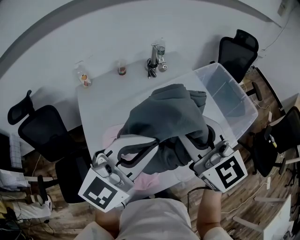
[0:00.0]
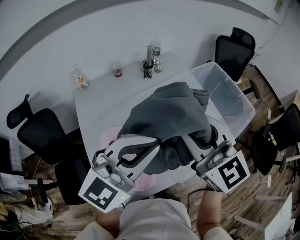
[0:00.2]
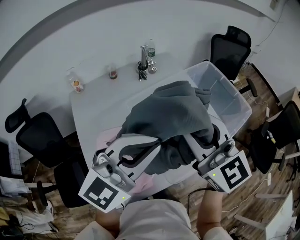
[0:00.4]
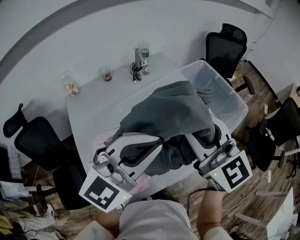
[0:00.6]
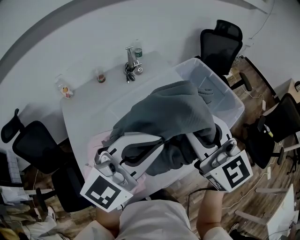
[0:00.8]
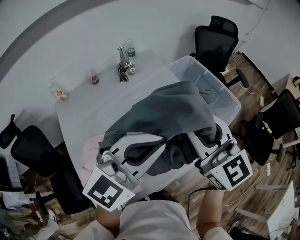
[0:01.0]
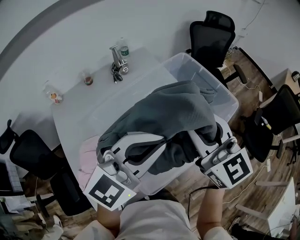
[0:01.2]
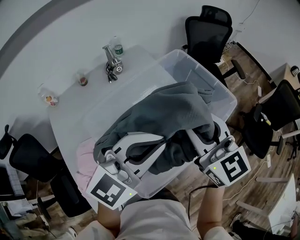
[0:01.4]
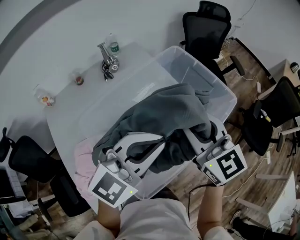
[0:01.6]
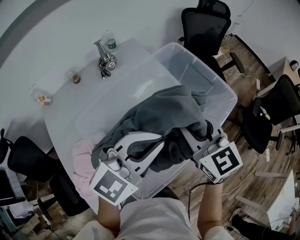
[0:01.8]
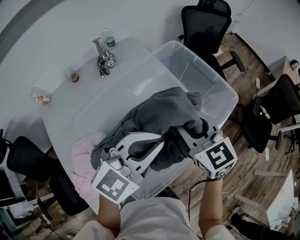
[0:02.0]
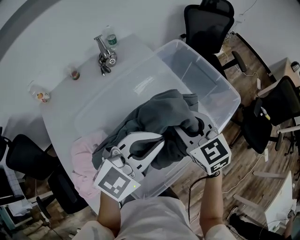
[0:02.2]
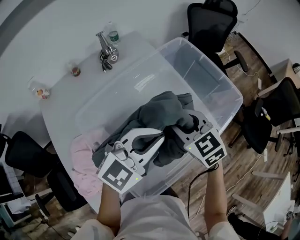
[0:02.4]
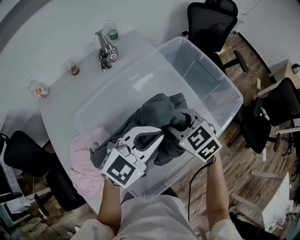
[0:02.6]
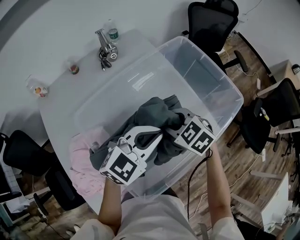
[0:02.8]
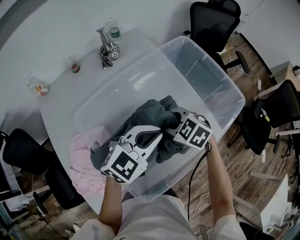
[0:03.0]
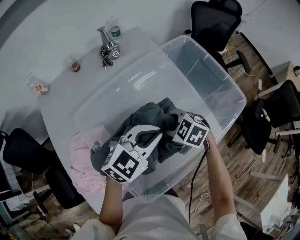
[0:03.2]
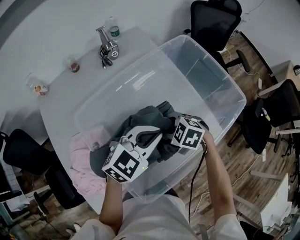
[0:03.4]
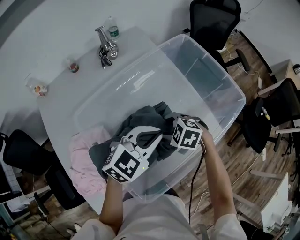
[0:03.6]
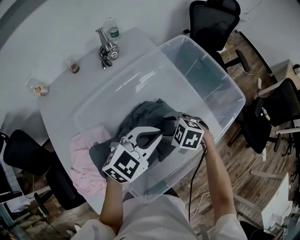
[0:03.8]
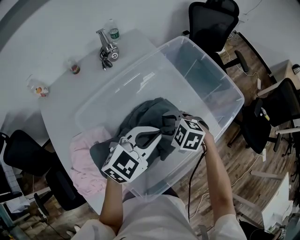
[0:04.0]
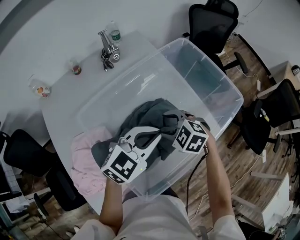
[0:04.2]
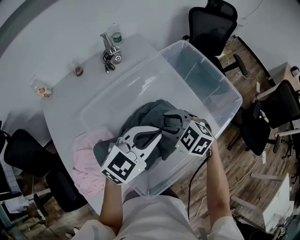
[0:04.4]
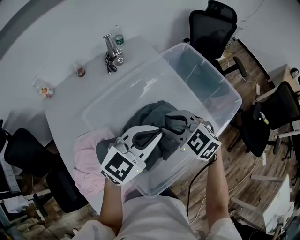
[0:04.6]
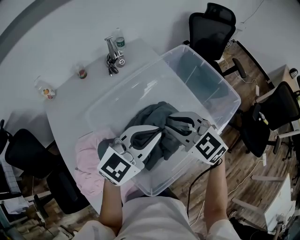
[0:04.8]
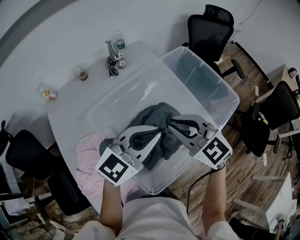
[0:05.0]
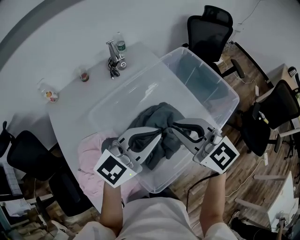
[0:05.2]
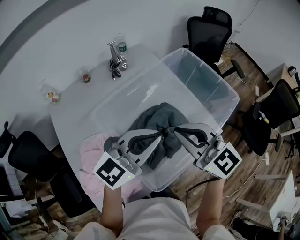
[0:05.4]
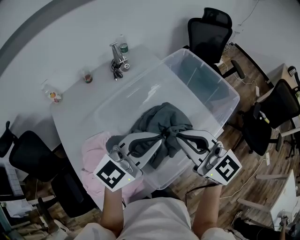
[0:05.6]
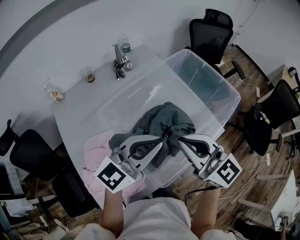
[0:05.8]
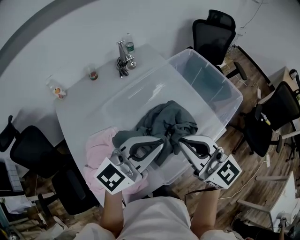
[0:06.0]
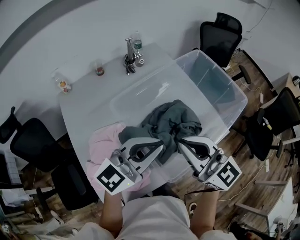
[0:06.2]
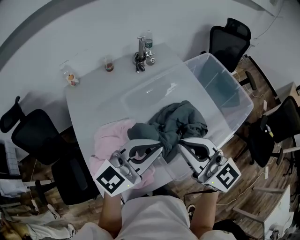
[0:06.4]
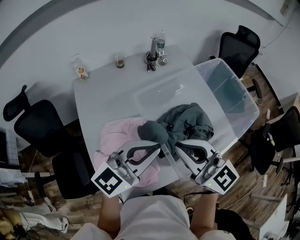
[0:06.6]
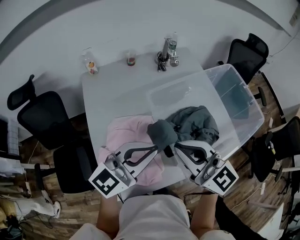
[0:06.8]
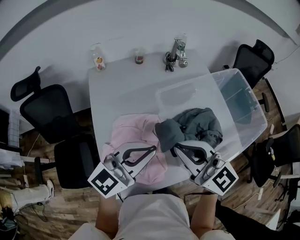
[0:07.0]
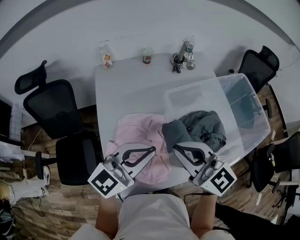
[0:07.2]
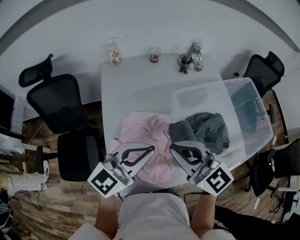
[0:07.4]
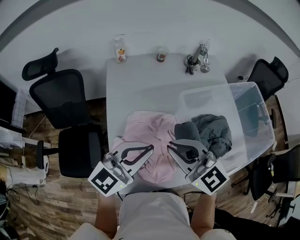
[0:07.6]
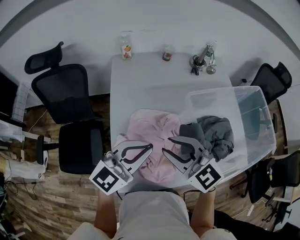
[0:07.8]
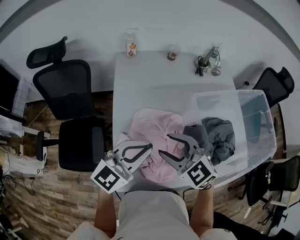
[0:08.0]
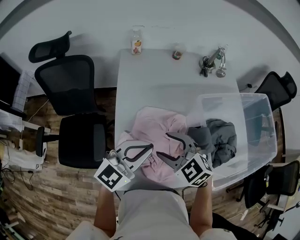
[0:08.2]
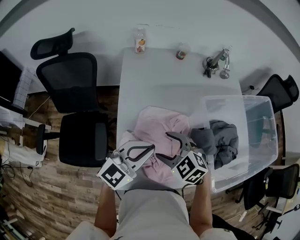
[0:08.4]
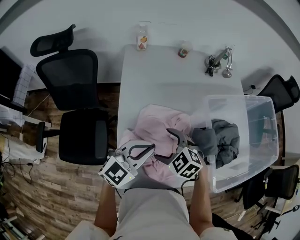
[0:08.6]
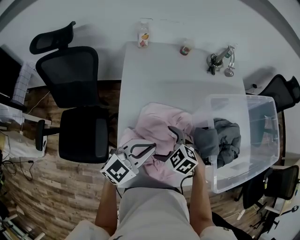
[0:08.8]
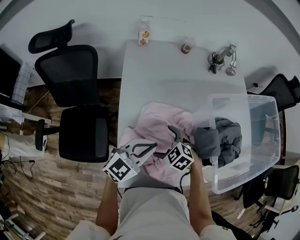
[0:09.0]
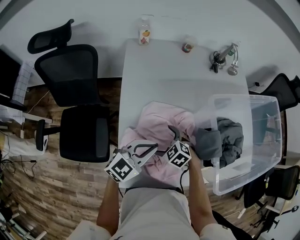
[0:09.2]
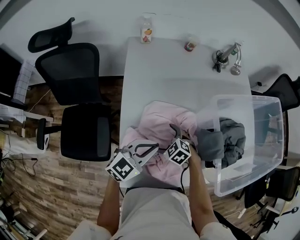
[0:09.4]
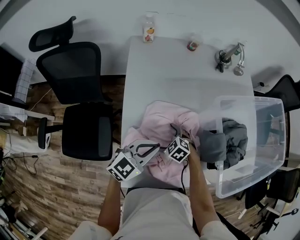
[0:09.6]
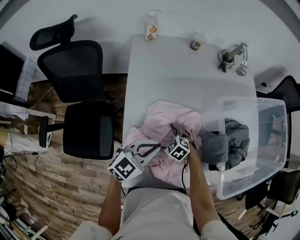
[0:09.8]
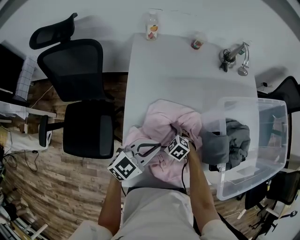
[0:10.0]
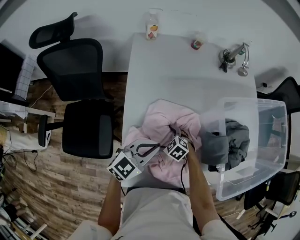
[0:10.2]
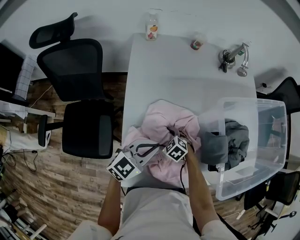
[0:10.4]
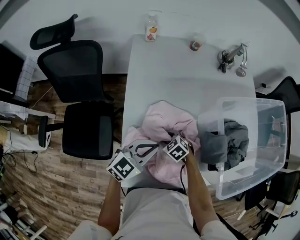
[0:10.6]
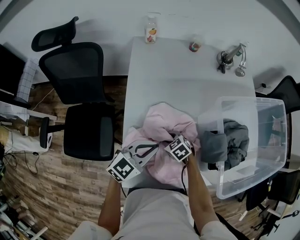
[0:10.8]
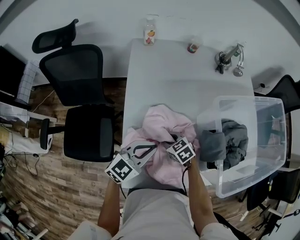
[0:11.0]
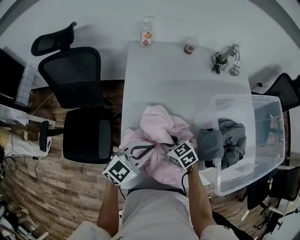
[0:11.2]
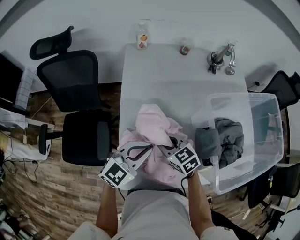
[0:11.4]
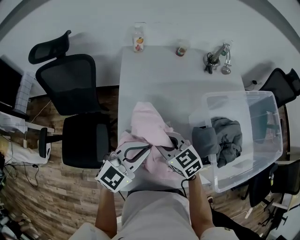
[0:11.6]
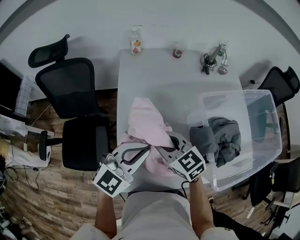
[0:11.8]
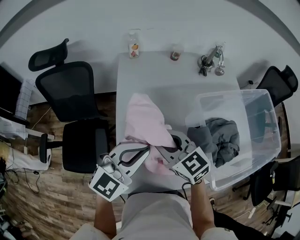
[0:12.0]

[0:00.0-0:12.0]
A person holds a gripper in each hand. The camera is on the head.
0:00.0 to 0:01.6: The grippers both shift to the right and forward by approximately 25 cm.
0:01.6 to 0:03.0: The right gripper is displaced downward by some 20 cm, and tips its fingers downward by some 40 degrees. Meanwhile the left gripper is displaced downward by roughly 15 cm.
0:04.4 to 0:06.0: The right gripper goes about 20 cm upward and backward, angles its fingers upward, by roughly 50 degrees, and closes its fingers; the left gripper shifts about 15 cm backward, upward and to the left.
0:06.0 to 0:07.6: The left gripper ends up about 30 cm from where it was, and rotates some 30 degrees. Meanwhile the right gripper moves some 30 cm, and rotates roughly 30 degrees.
0:07.6 to 0:09.0: The left gripper shifts about 15 cm downward. The right gripper moves downward, approximately 25 cm, tips its fingers downward by some 40 degrees, and opens up.
0:09.0 to 0:10.4: The left gripper is displaced downward by some 5 cm; the right gripper is displaced downward by approximately 10 cm.
0:10.4 to 0:12.0: The right gripper shifts about 30 cm upward, angles its fingers upward, by approximately 40 degrees, and closes up; the left gripper goes roughly 15 cm upward, and turns by some 20 degrees.

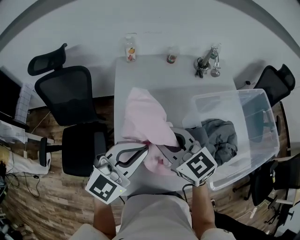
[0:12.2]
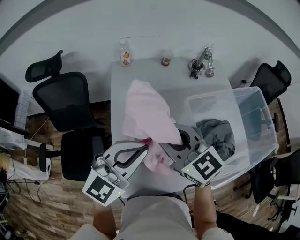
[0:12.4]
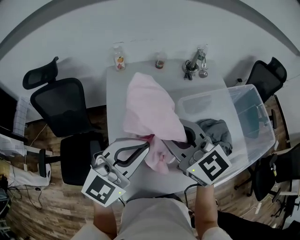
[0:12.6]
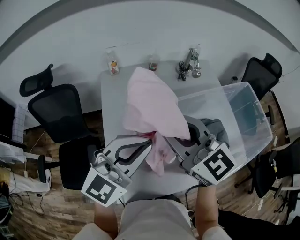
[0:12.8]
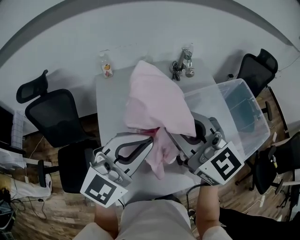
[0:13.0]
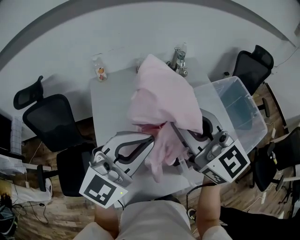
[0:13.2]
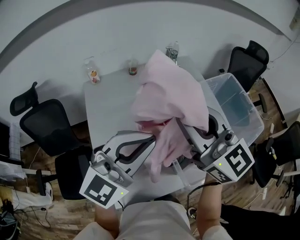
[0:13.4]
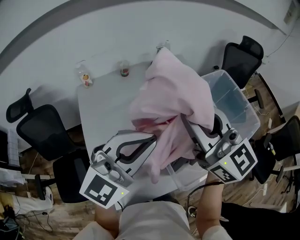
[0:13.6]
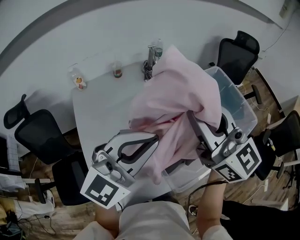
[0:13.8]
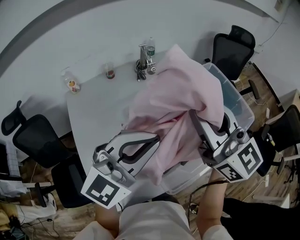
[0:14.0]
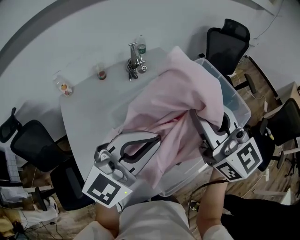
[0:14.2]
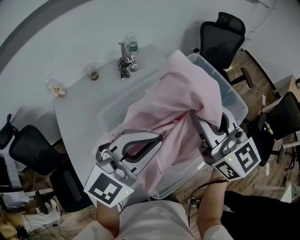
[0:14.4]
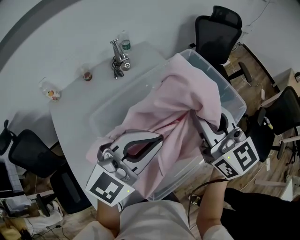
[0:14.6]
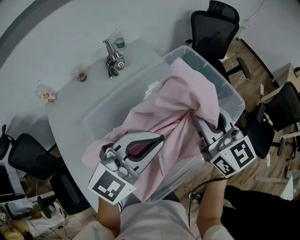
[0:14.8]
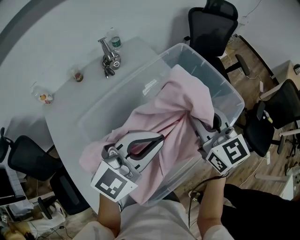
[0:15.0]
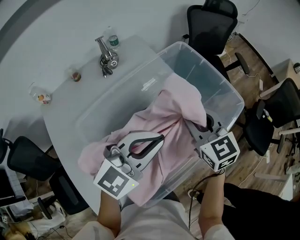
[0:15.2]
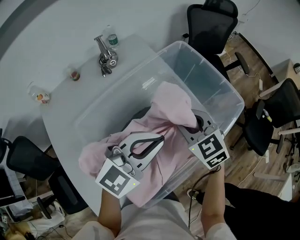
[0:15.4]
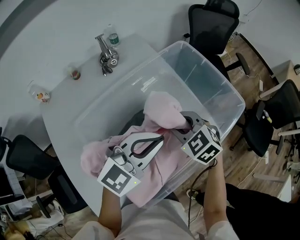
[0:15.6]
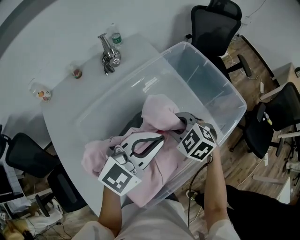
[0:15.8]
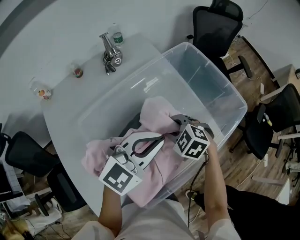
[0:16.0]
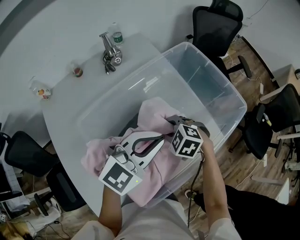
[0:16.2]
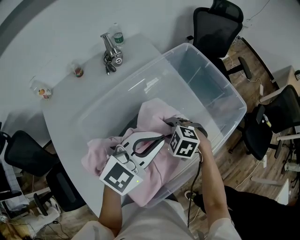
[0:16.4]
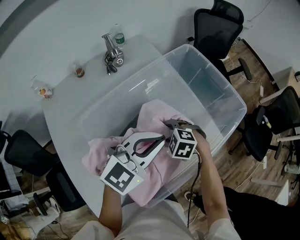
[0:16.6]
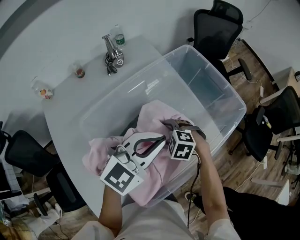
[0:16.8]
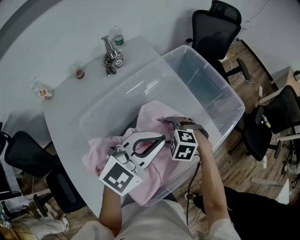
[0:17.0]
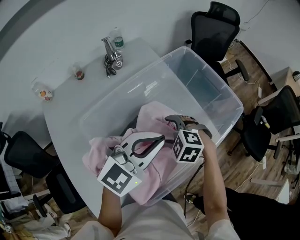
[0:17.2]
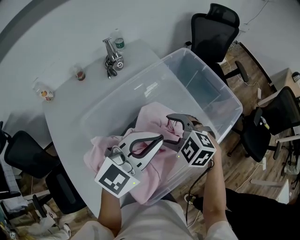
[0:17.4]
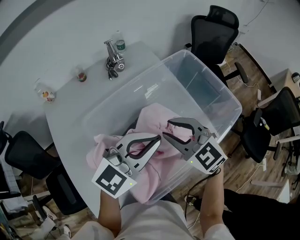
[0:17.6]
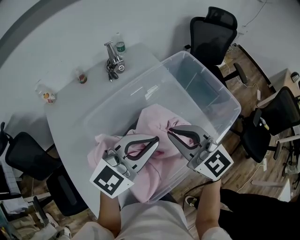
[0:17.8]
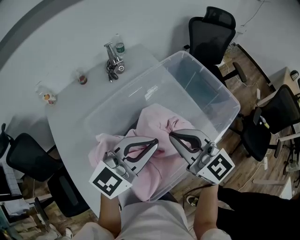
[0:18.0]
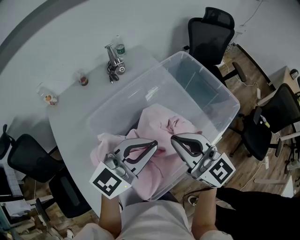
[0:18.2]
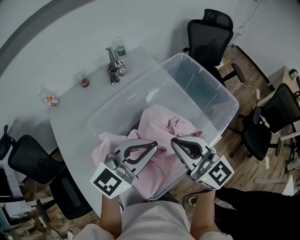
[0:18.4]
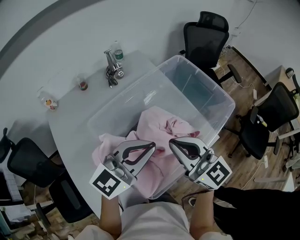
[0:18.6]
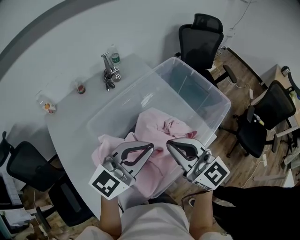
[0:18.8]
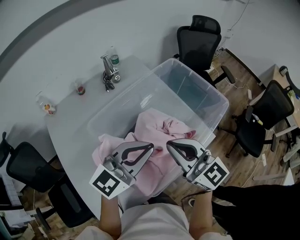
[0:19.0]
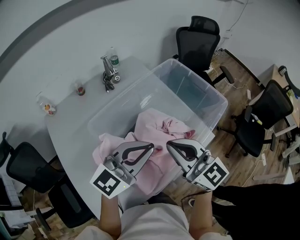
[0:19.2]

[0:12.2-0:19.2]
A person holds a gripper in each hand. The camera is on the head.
0:12.2 to 0:13.6: The grippers both shift to the right and upward by roughly 25 cm. The left gripper rotates roughly 20 degrees; the right gripper turns by roughly 30 degrees.
0:13.6 to 0:15.0: The left gripper is displaced to the right, forward and downward by roughly 25 cm, and swivels approximately 20 degrees; the right gripper moves to the right, downward and forward, some 30 cm, and turns by about 30 degrees.
0:15.0 to 0:16.4: The left gripper shifts about 5 cm downward; the right gripper shifts some 20 cm downward, and tilts its fingers roughly 50 degrees downward.
0:16.4 to 0:17.8: The left gripper changes place by about 5 cm. Meanwhile the right gripper moves upward, about 20 cm, tilts its fingers some 50 degrees upward, and opens, then closes again.
0:17.8 to 0:19.2: The grippers both shift backward by about 5 cm.

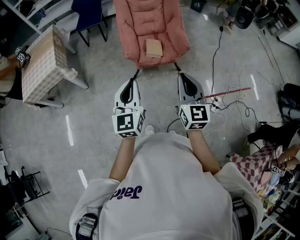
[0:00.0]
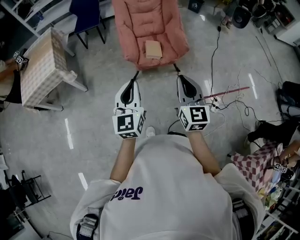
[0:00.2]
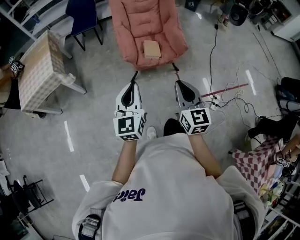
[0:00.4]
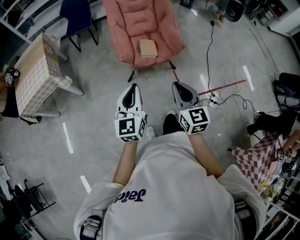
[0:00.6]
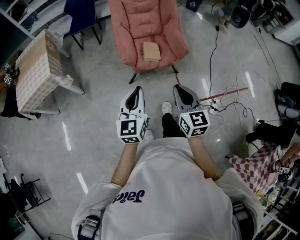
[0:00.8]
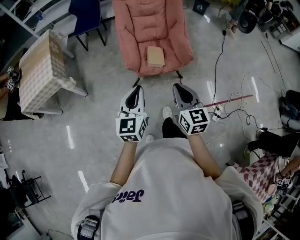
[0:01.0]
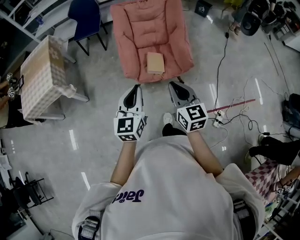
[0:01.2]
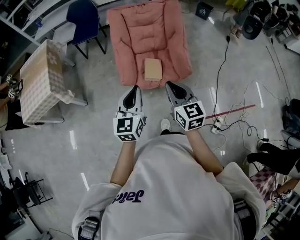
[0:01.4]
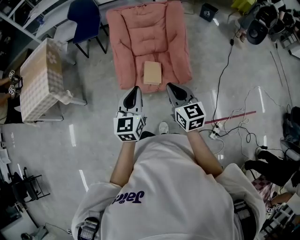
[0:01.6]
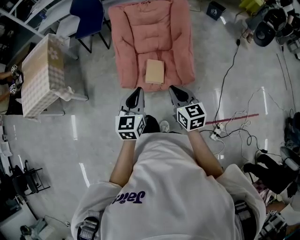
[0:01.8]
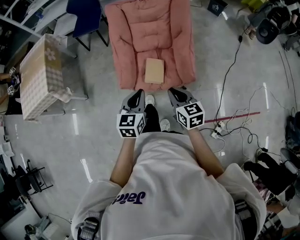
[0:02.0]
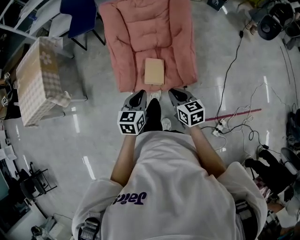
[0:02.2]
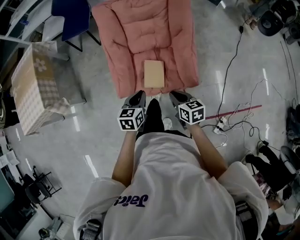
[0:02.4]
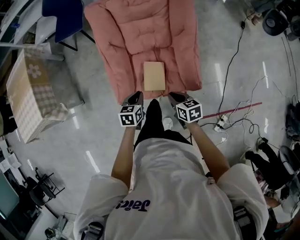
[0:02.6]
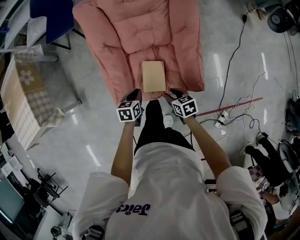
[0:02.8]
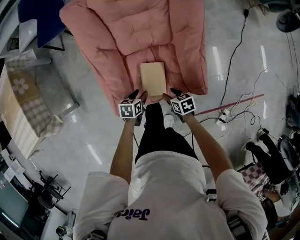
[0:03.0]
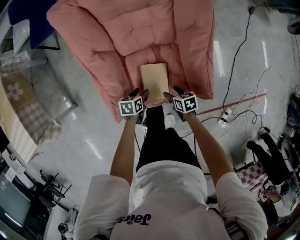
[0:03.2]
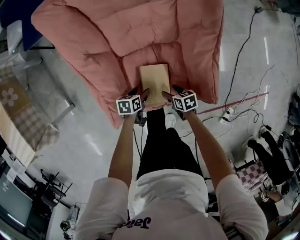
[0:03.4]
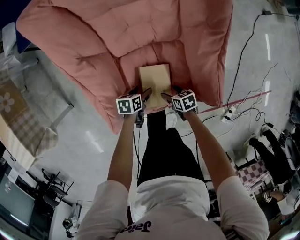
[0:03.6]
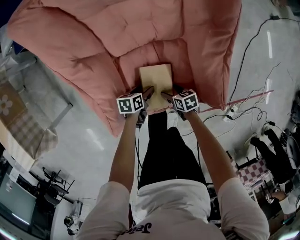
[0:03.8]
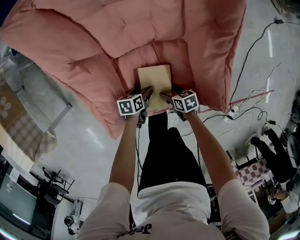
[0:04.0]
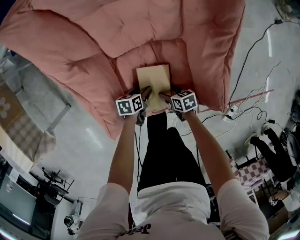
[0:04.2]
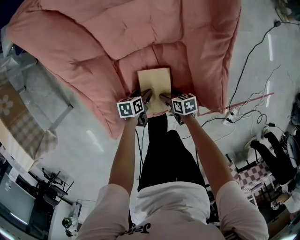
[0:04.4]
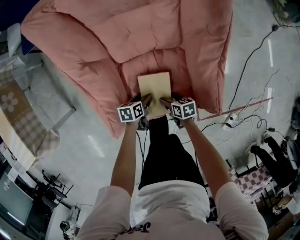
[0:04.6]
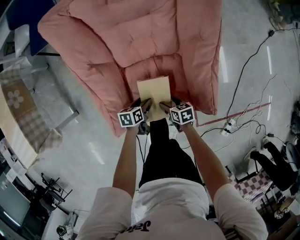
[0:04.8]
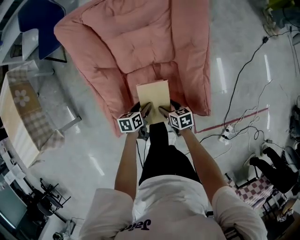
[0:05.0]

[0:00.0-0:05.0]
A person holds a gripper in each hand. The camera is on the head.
0:00.0 to 0:01.6: The left gripper moves forward and to the right, some 30 cm. Meanwhile the right gripper goes approximately 30 cm forward, and changes its angle by about 20 degrees.
0:01.6 to 0:03.4: The two grippers go some 60 cm downward. The left gripper tilts its fingers some 40 degrees downward, and opens, while the right gripper tilts its fingers about 40 degrees downward, and opens its fingers.
0:03.4 to 0:05.0: Both grippers travel together upward, roughly 10 cm.
